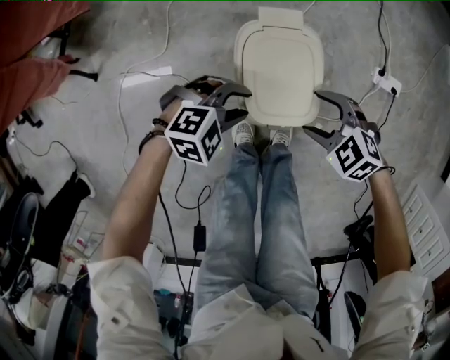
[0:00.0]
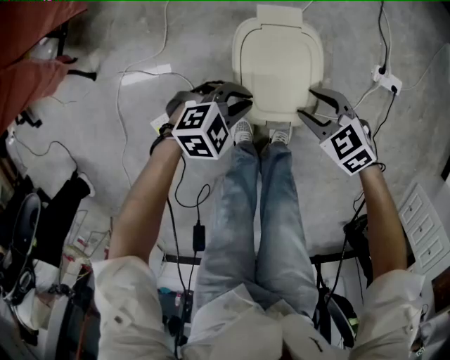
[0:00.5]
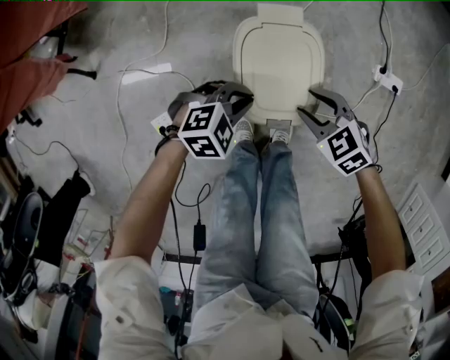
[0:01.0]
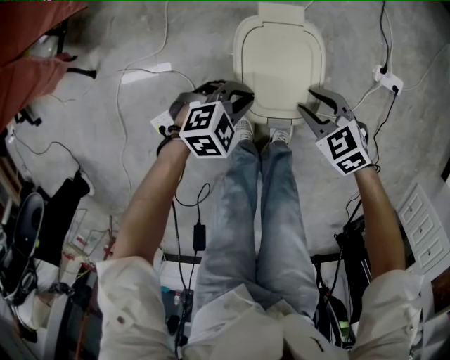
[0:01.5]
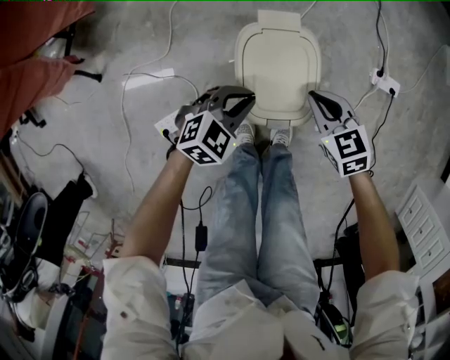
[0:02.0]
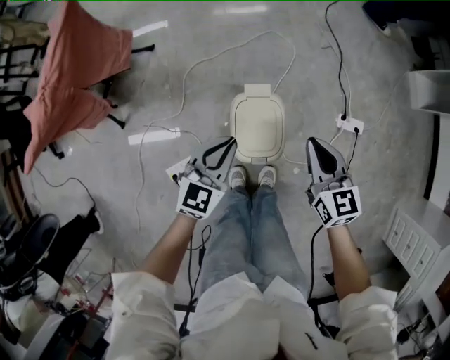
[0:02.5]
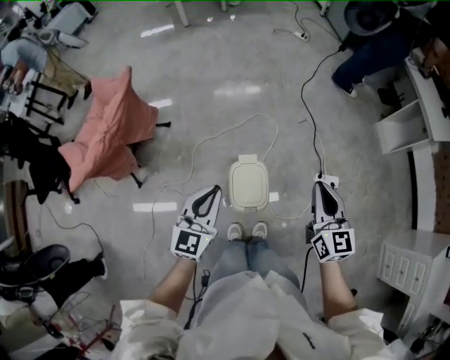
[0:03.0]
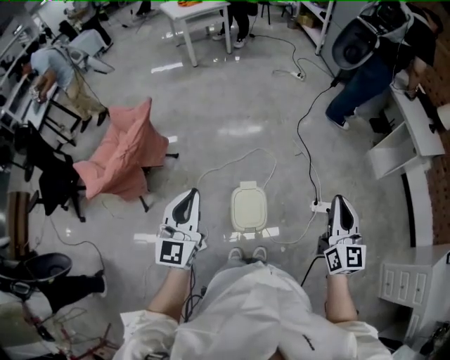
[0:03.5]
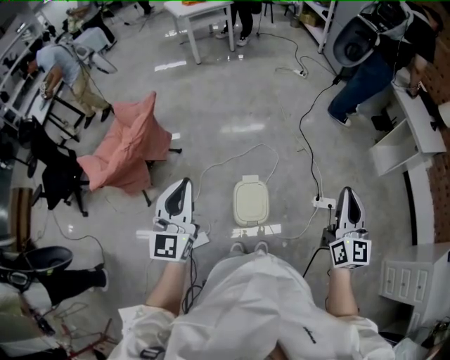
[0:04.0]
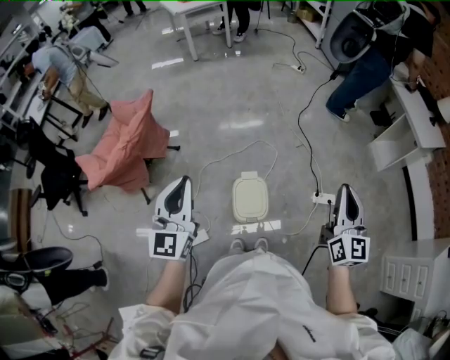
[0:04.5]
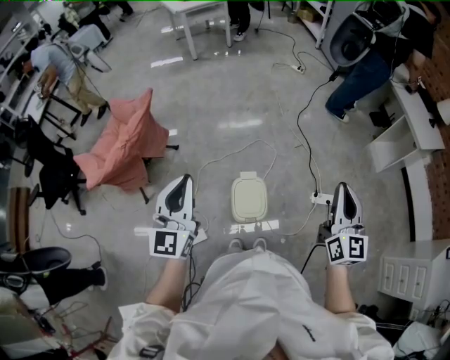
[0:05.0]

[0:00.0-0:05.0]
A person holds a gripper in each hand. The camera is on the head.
0:00.0 to 0:02.5: The grippers both shift upward by approximately 30 cm. The right gripper points its fingers roughly 30 degrees further upward, and closes. Meanwhile the left gripper changes its angle by roughly 60 degrees, and closes its fingers.
0:02.5 to 0:05.0: Both grippers travel together upward, some 40 cm. The left gripper tips its fingers upward by some 30 degrees. The right gripper points its fingers about 30 degrees further upward.

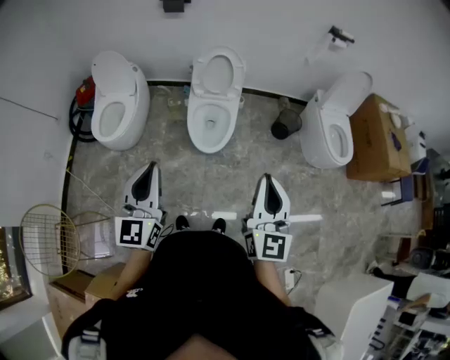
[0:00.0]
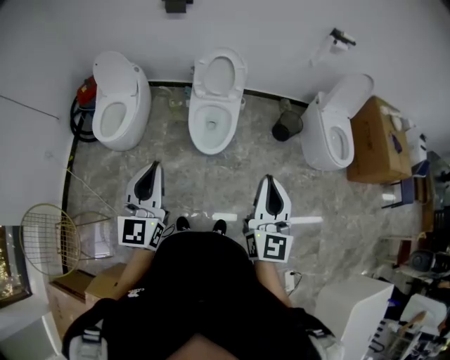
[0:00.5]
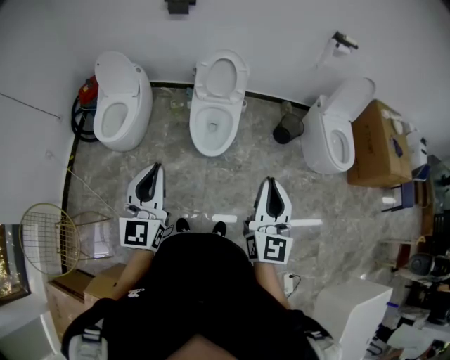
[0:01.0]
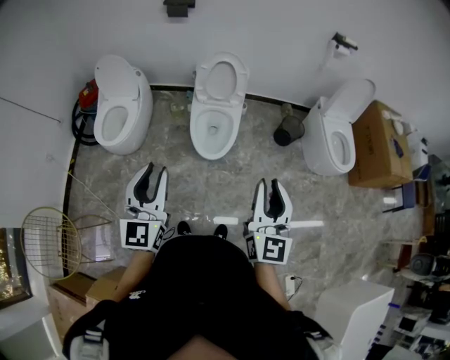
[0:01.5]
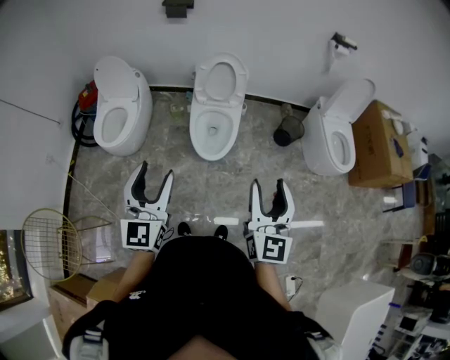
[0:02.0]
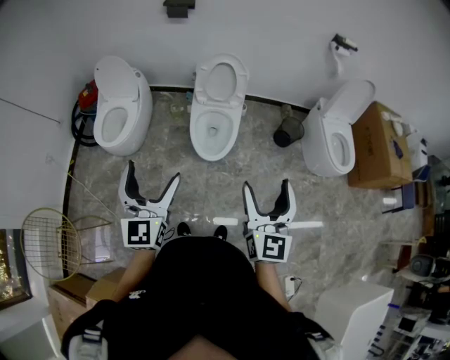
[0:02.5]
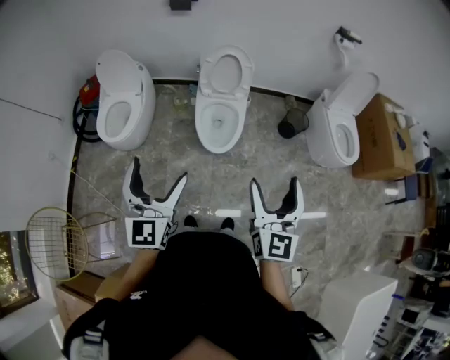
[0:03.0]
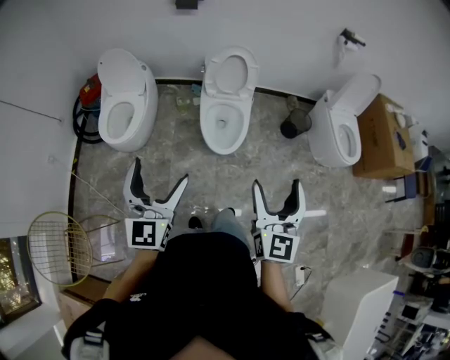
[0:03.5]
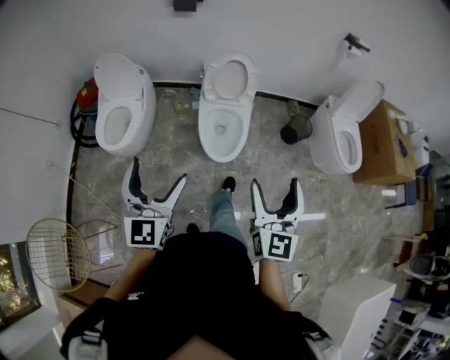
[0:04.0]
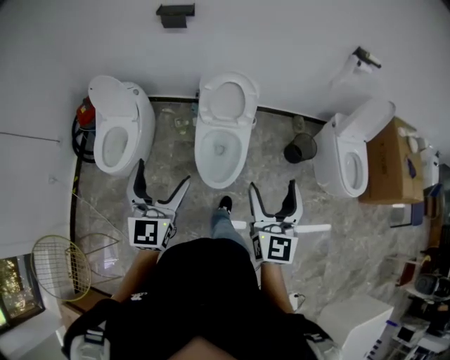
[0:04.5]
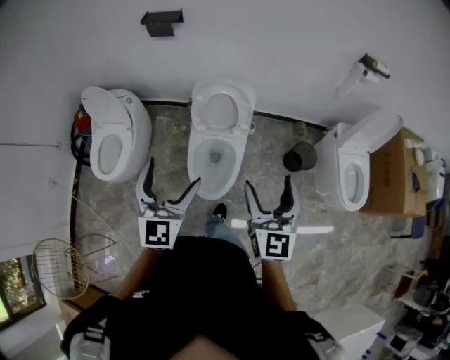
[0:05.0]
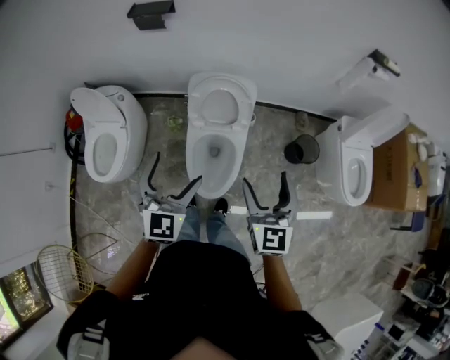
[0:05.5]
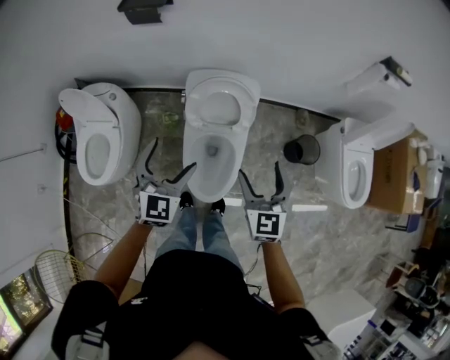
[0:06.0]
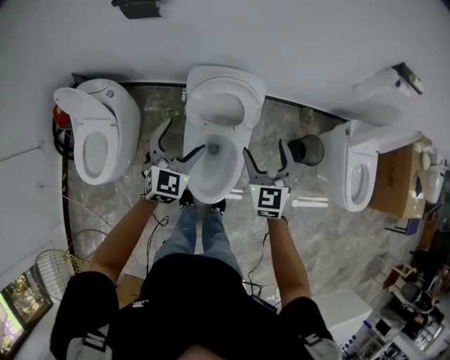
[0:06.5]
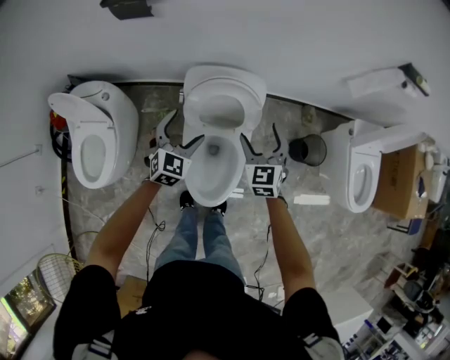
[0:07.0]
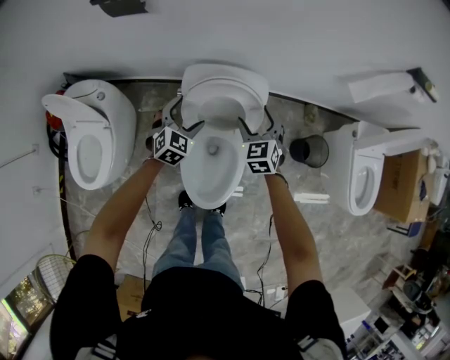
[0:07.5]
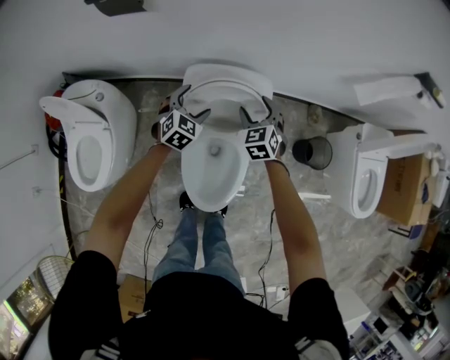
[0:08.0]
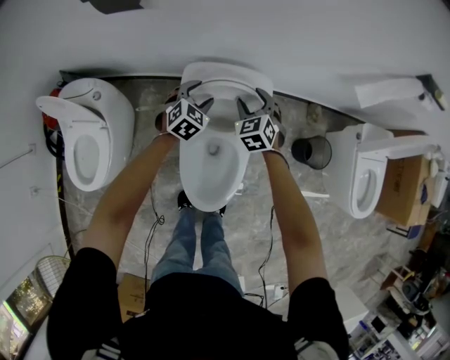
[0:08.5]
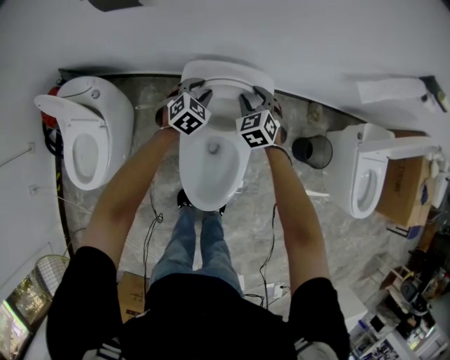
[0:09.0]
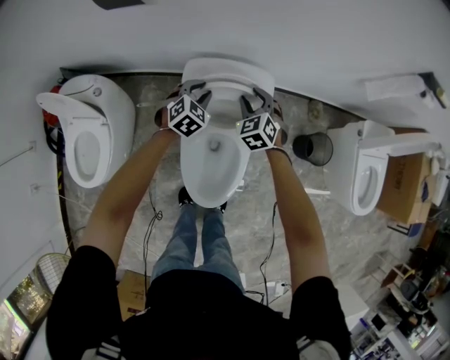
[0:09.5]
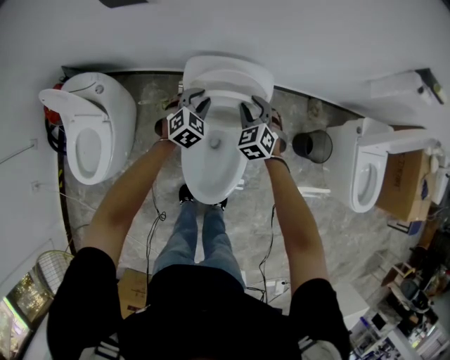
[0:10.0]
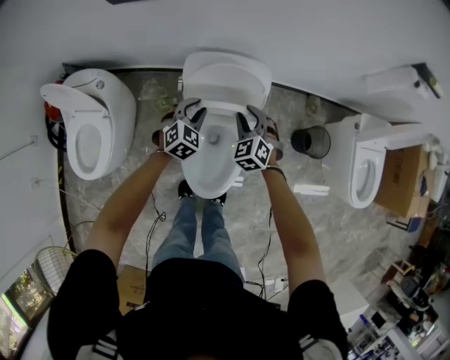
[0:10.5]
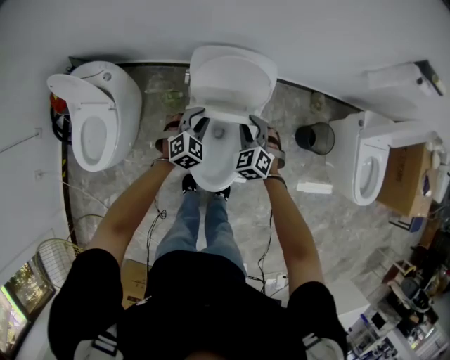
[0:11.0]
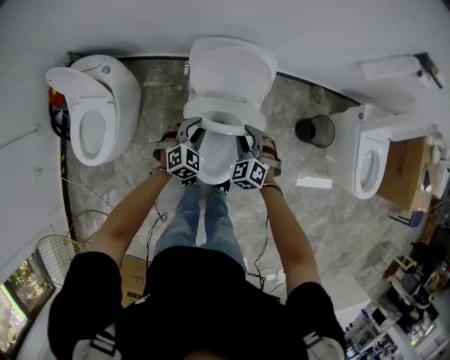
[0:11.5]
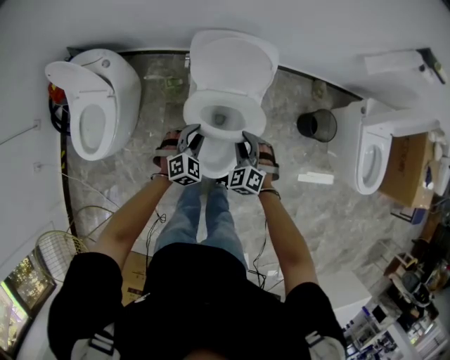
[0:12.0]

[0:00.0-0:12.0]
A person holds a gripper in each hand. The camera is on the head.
0:00.0 to 0:02.0: The left gripper opens up; the right gripper opens.
0:02.0 to 0:04.0: Both grippers move to the left and forward, roughly 10 cm. The left gripper opens up, while the right gripper opens.
0:04.0 to 0:06.0: The pair of grippers is taken forward, about 40 cm. The left gripper swivels some 30 degrees. The right gripper swivels approximately 20 degrees.
0:06.0 to 0:08.0: Both grippers move forward and downward, some 35 cm. The left gripper changes its angle by some 20 degrees, while the right gripper rotates some 20 degrees.
0:08.0 to 0:10.0: The left gripper closes its fingers.
0:10.0 to 0:12.0: The two grippers go some 25 cm backward.

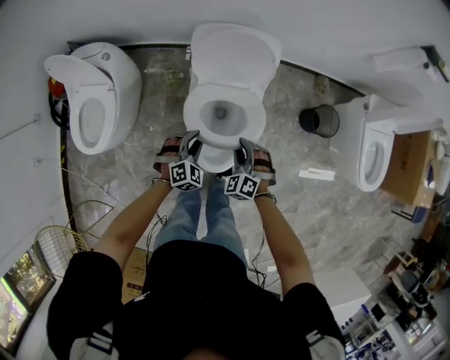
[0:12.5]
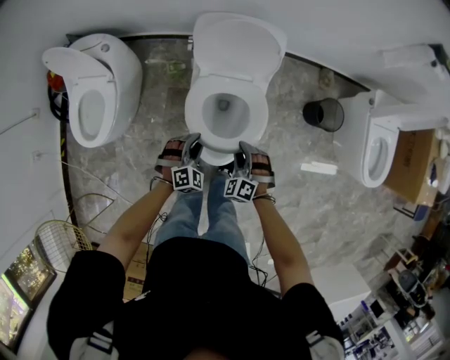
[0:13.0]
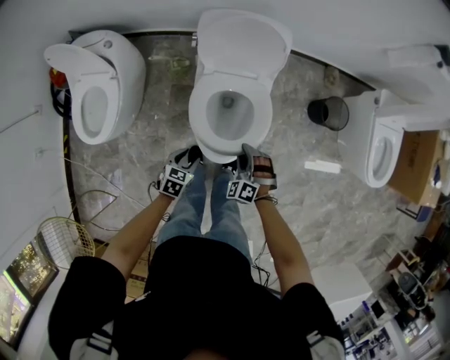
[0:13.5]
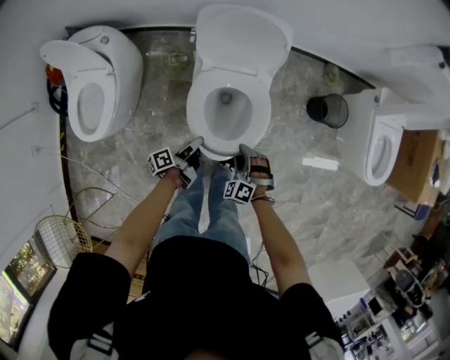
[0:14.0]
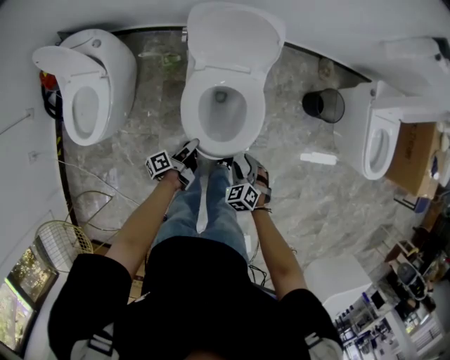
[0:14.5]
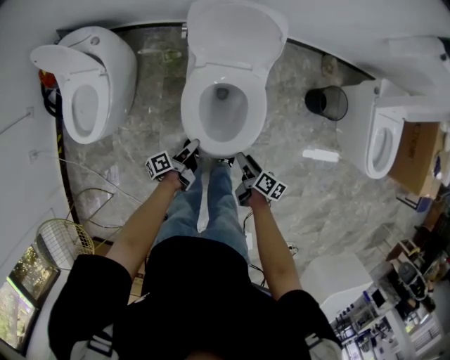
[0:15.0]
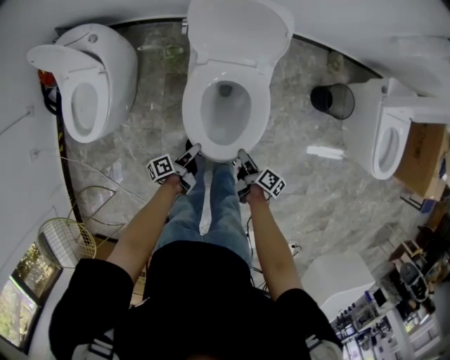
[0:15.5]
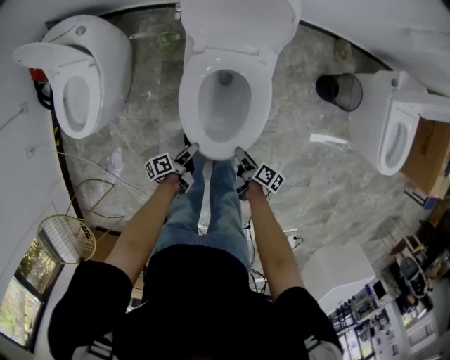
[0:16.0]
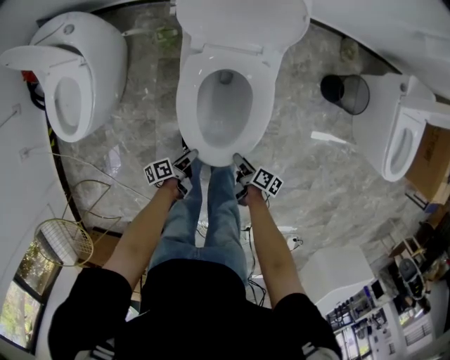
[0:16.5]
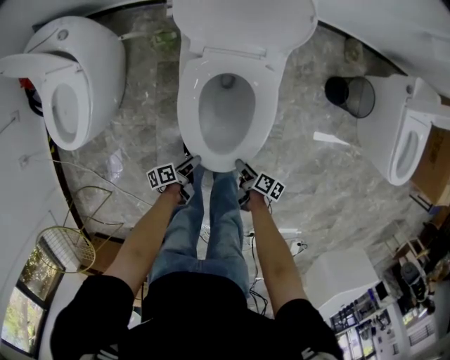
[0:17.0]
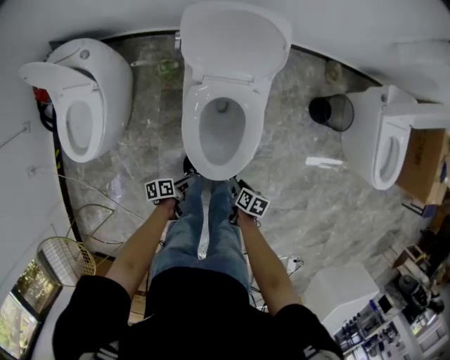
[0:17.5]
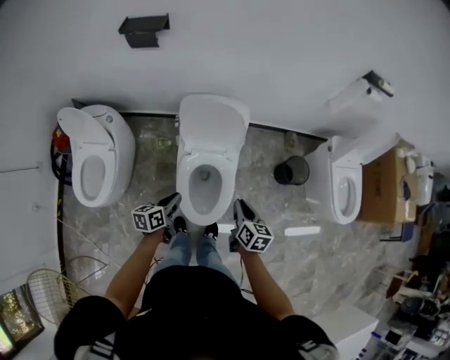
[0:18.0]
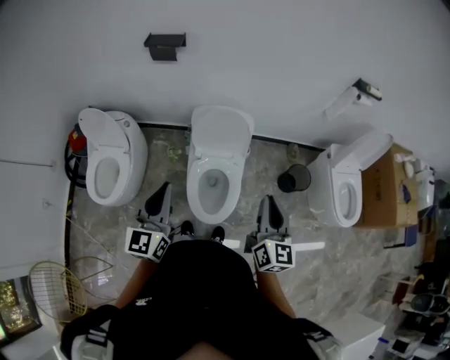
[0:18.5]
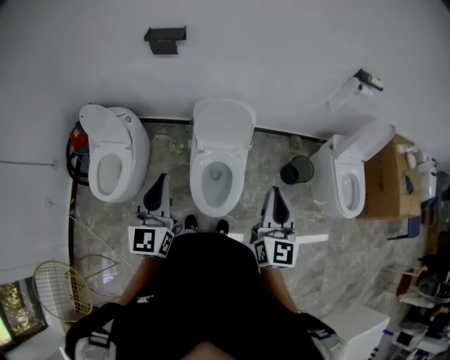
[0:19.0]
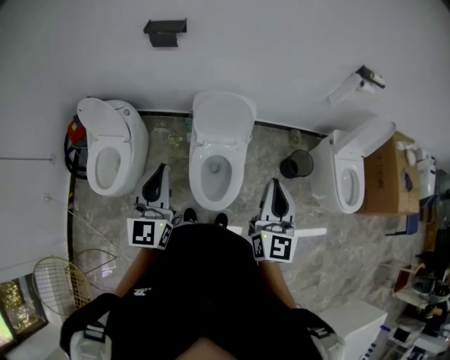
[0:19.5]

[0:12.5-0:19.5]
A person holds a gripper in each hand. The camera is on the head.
0:12.5 to 0:14.5: The right gripper is displaced backward and downward by approximately 15 cm, and turns by some 30 degrees, while the left gripper heads downward and backward, covering roughly 10 cm, and rotates around the line of its fingers by roughly 130 degrees, counterclockwise from behind.
0:14.5 to 0:16.0: The right gripper shifts approximately 10 cm downward, and rolls clockwise, seen from behind, by roughly 100 degrees. Meanwhile the left gripper goes about 10 cm downward and backward.
0:16.0 to 0:17.5: The right gripper travels downward and back again, about 10 cm each way, and swivels roughly 30 degrees. The left gripper goes downward and returns, approximately 10 cm each way, and turns by approximately 20 degrees.
0:17.5 to 0:19.5: Both grippers move upward, some 60 cm. The right gripper points its fingers some 60 degrees further upward, while the left gripper tips its fingers upward by about 50 degrees.

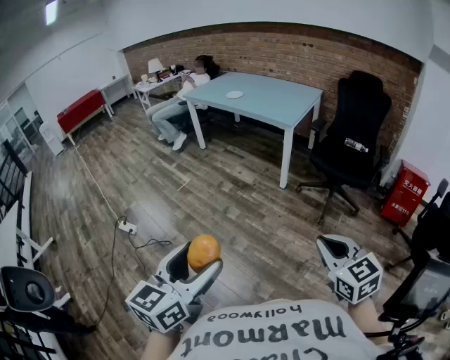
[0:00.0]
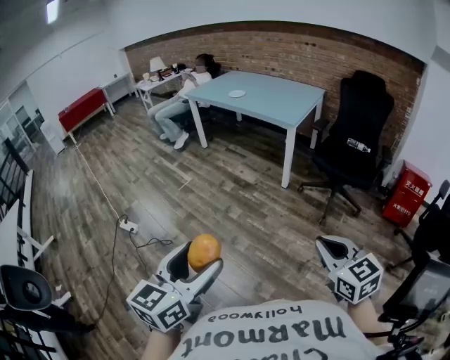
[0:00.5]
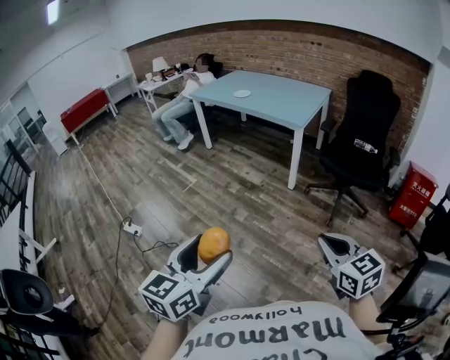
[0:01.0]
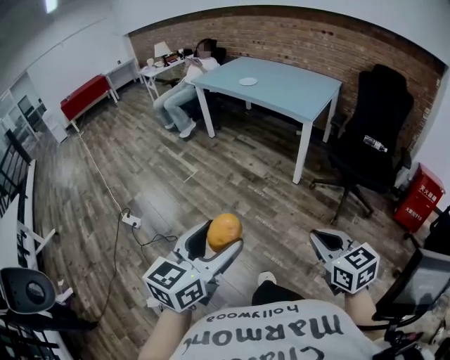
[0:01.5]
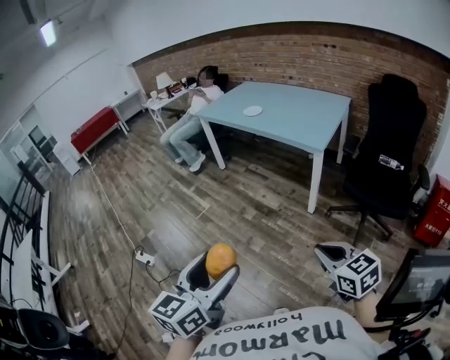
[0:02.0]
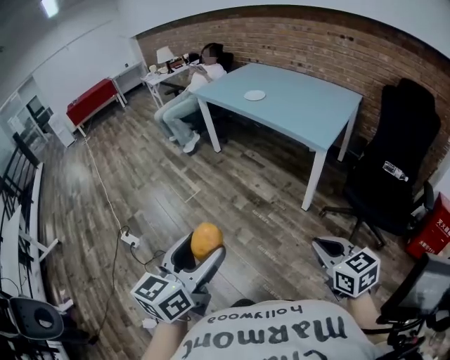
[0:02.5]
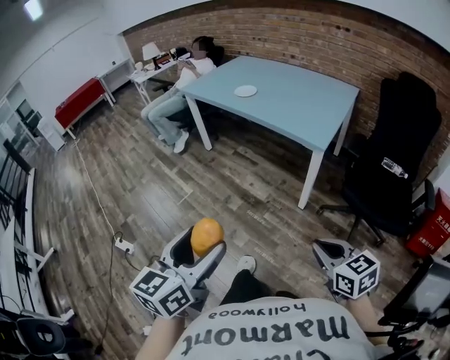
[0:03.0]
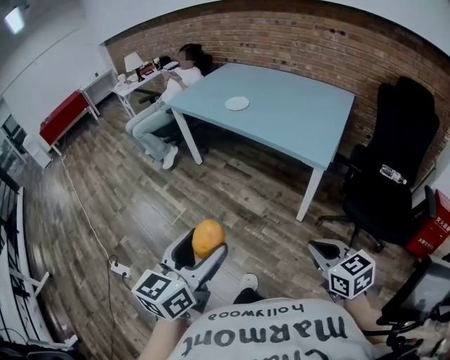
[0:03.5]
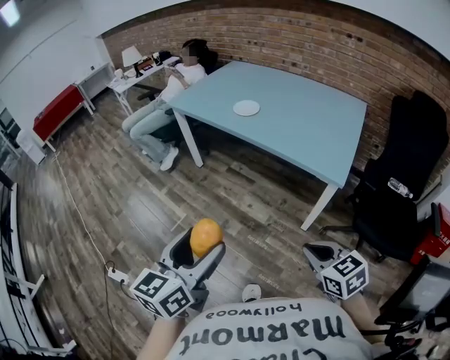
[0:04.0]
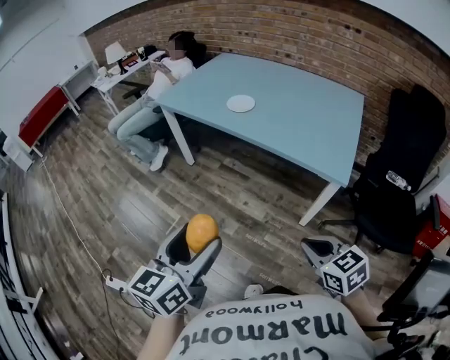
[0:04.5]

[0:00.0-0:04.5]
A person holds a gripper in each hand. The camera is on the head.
0:00.0 to 0:02.0: Both grippers travel together forward, roughly 25 cm.
0:02.0 to 0:04.5: Both grippers are carried forward, roughly 50 cm.
